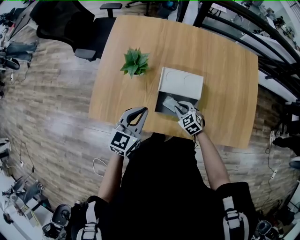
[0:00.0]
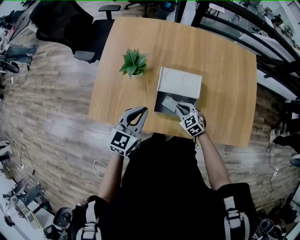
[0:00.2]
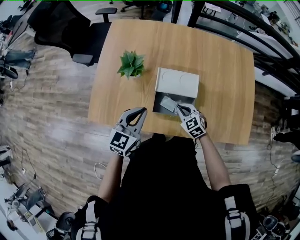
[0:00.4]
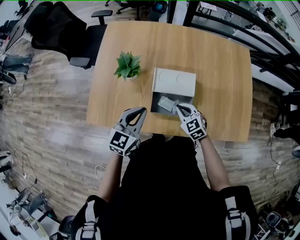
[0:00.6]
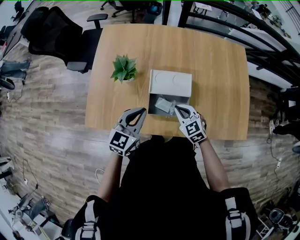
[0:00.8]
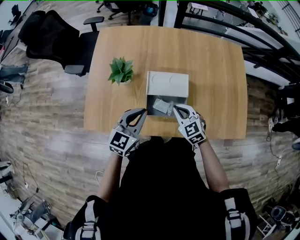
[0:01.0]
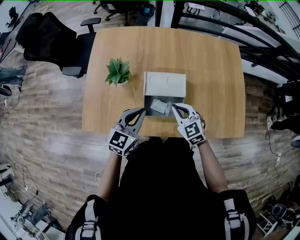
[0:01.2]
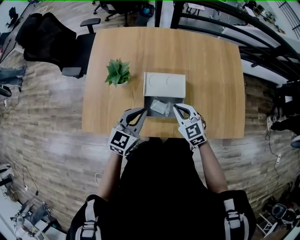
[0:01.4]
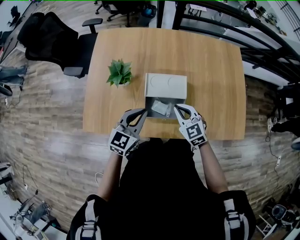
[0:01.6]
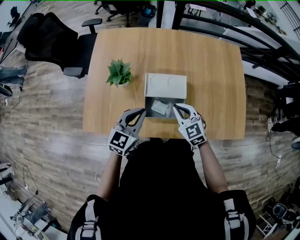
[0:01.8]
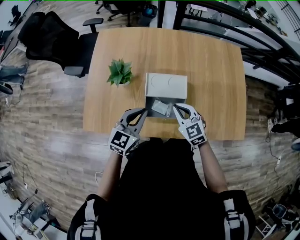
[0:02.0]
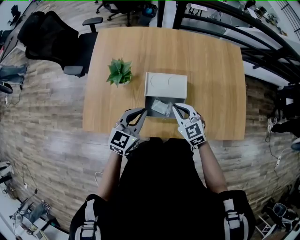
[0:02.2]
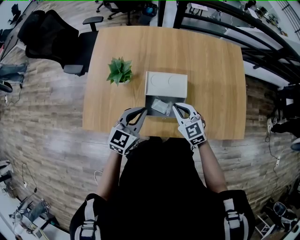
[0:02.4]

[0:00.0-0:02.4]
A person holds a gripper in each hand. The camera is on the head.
0:00.0 to 0:01.2: The left gripper changes place by approximately 5 cm. Meanwhile the right gripper heads upward, covering about 15 cm.
0:01.2 to 0:02.4: The two grippers keep their place.

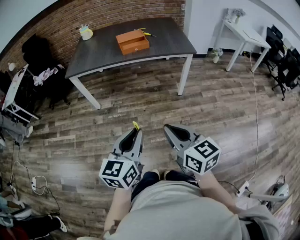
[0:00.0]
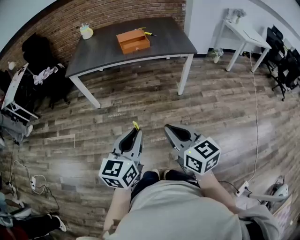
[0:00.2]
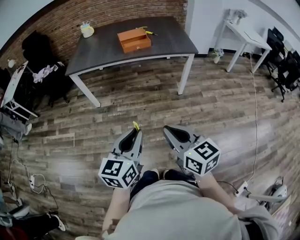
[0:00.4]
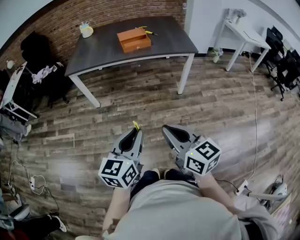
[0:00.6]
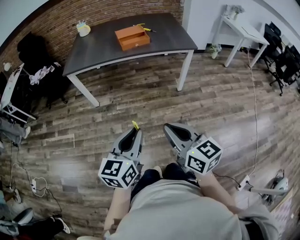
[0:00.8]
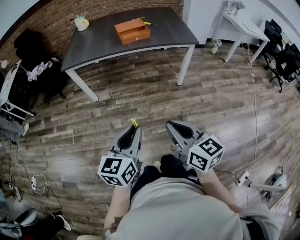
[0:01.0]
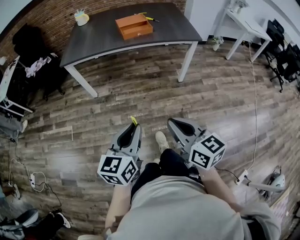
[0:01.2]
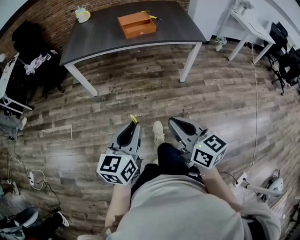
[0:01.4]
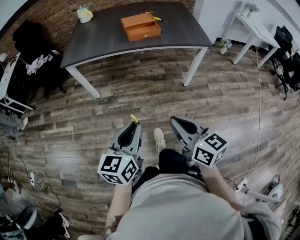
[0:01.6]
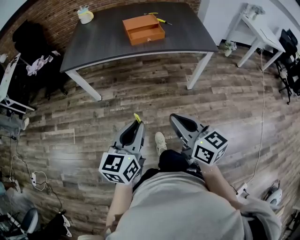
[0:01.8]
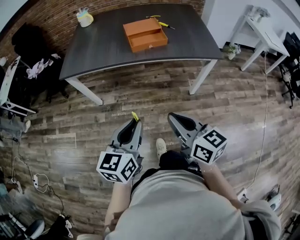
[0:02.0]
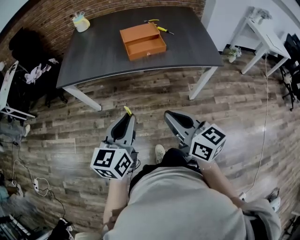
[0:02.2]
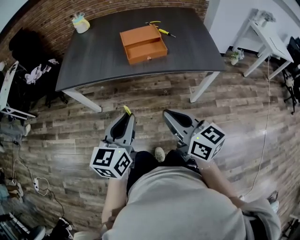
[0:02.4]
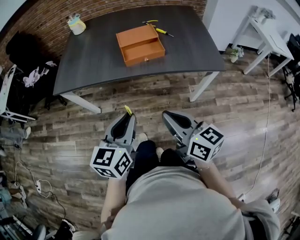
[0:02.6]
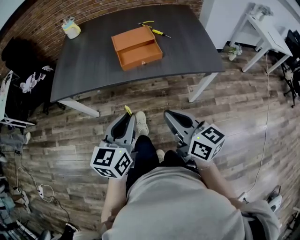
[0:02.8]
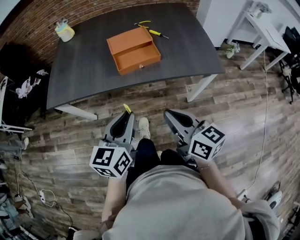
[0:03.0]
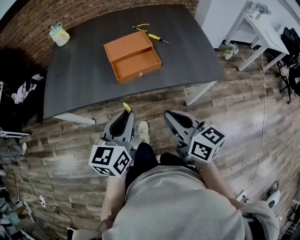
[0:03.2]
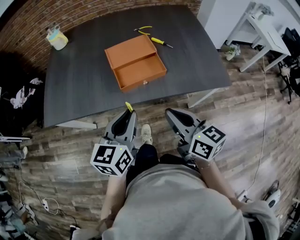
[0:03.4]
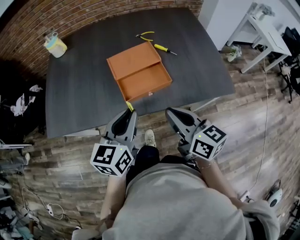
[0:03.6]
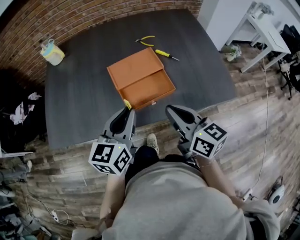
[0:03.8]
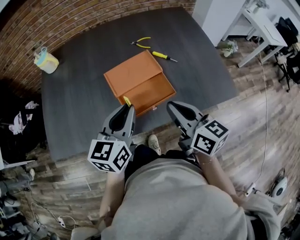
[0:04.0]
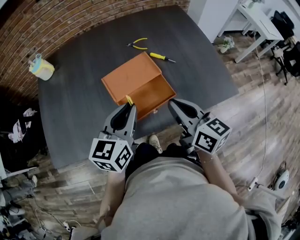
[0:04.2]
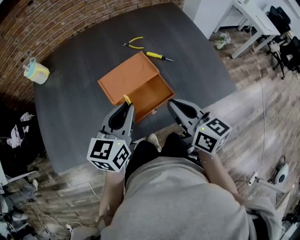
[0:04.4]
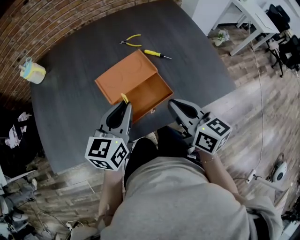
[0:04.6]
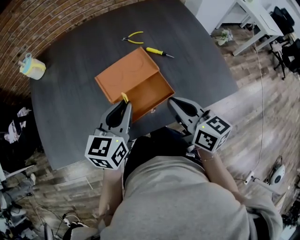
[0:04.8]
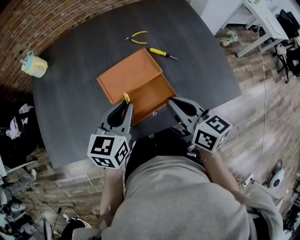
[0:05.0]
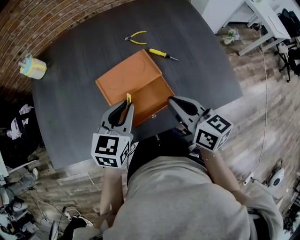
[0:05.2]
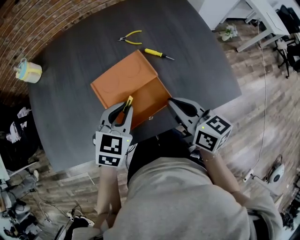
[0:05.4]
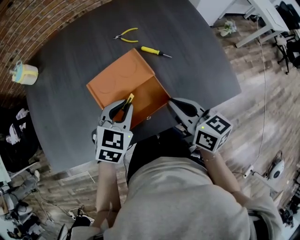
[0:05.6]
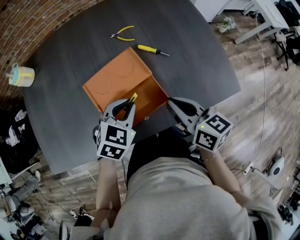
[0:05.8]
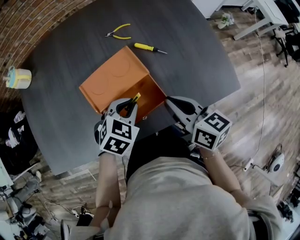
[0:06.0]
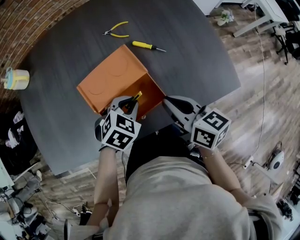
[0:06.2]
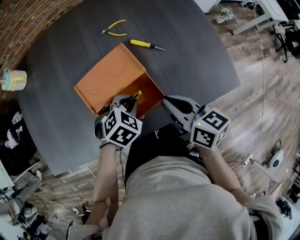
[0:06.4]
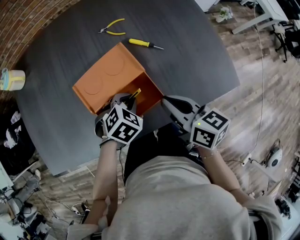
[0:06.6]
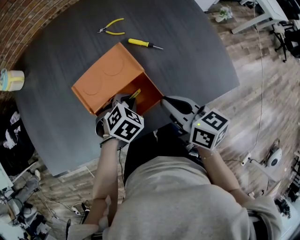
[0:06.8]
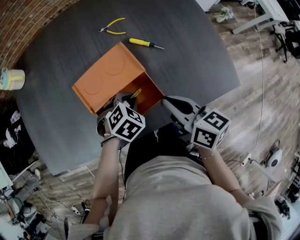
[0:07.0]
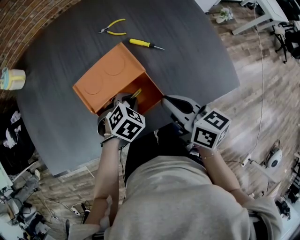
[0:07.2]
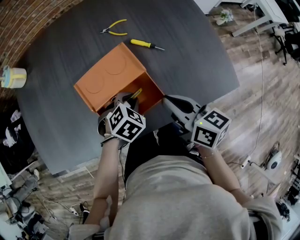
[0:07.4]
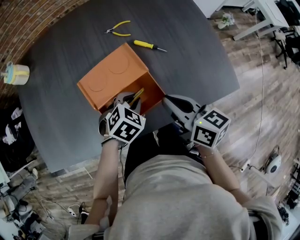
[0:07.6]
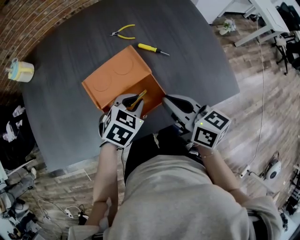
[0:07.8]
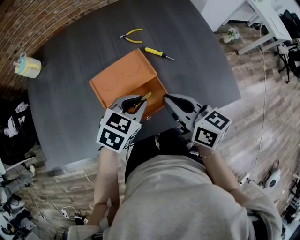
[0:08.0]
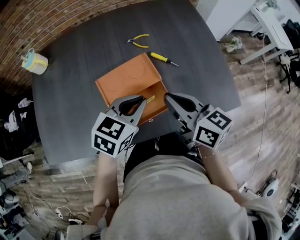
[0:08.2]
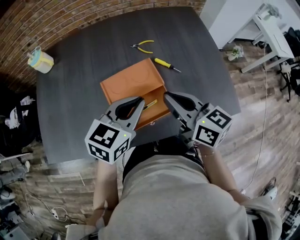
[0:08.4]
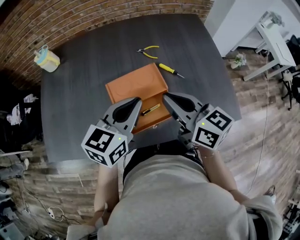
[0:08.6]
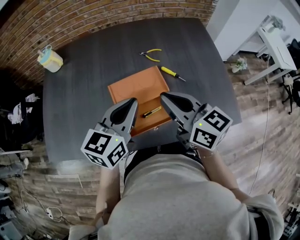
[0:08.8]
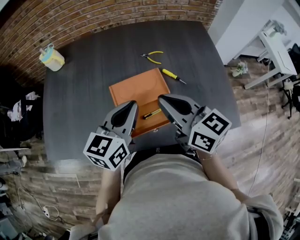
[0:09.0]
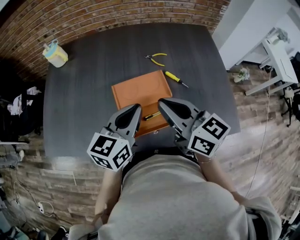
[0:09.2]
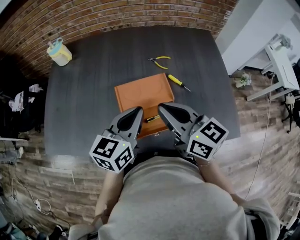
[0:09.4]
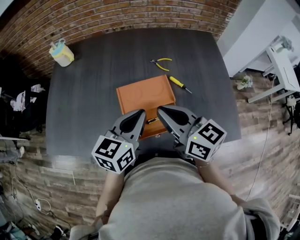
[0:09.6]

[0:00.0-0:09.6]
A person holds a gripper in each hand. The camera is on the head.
0:00.0 to 0:01.6: The left gripper goes roughly 15 cm forward and to the left. Meanwhile the right gripper is displaced forward by some 10 cm.
0:01.6 to 0:03.2: Both grippers travel together forward, approximately 40 cm.
0:03.2 to 0:04.8: The grippers both shift forward by approximately 25 cm.
0:04.8 to 0:06.4: The left gripper goes roughly 20 cm downward and to the right, and points its fingers approximately 40 degrees further downward; the right gripper moves downward, roughly 5 cm.
0:06.4 to 0:08.0: The left gripper shifts about 10 cm upward, and changes its angle by roughly 30 degrees. Meanwhile the right gripper ends up roughly 5 cm from where it was.
0:08.0 to 0:09.6: The left gripper shifts about 15 cm upward and to the left, and changes its angle by approximately 40 degrees; the right gripper moves to the left and upward, some 10 cm, and rotates approximately 20 degrees.

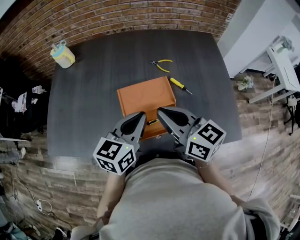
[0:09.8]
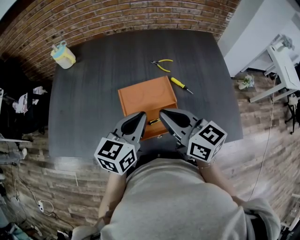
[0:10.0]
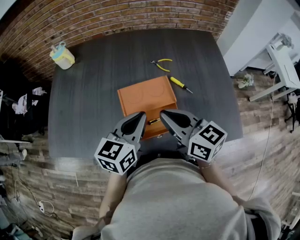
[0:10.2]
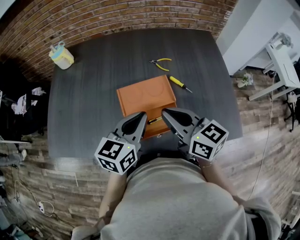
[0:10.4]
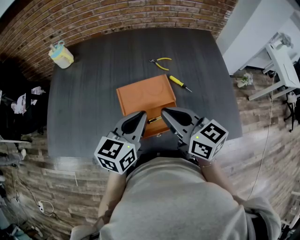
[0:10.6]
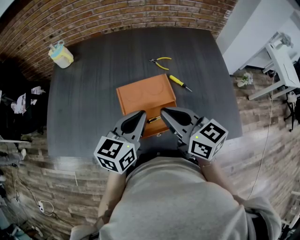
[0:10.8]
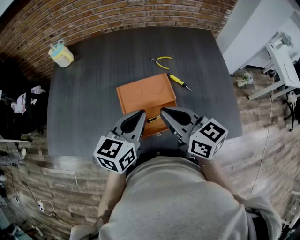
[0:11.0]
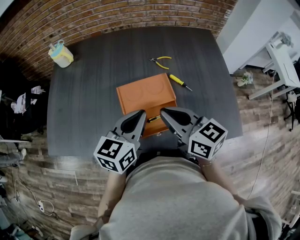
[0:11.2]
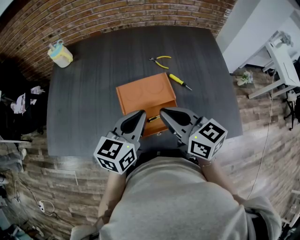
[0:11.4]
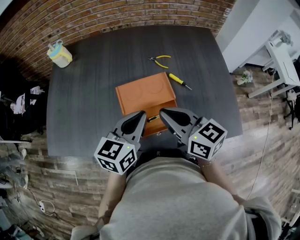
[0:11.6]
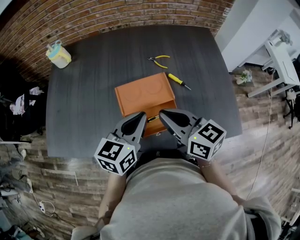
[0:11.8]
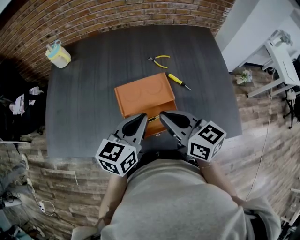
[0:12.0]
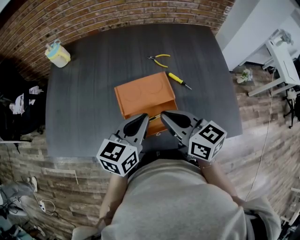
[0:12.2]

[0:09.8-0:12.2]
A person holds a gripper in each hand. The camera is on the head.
0:09.8 to 0:12.2: The grippers stay close to where they were, moving slightly.

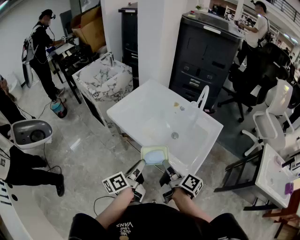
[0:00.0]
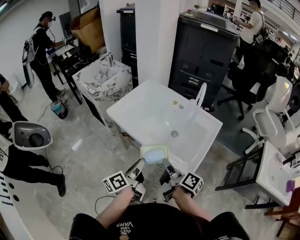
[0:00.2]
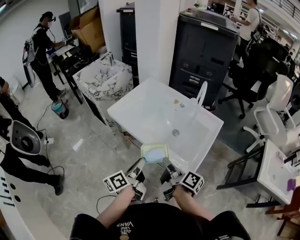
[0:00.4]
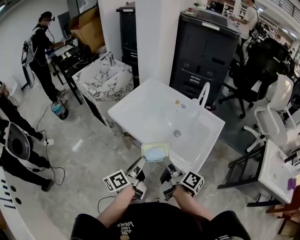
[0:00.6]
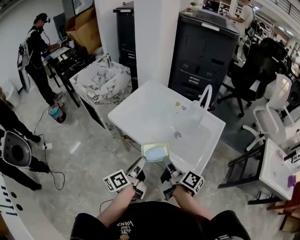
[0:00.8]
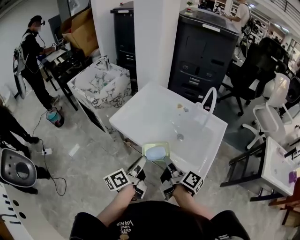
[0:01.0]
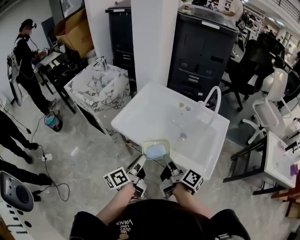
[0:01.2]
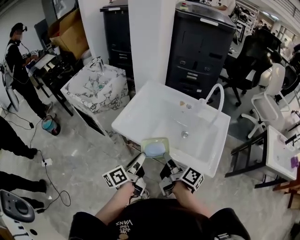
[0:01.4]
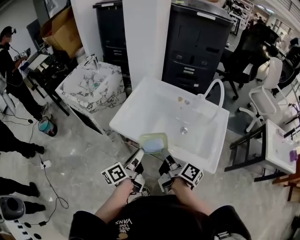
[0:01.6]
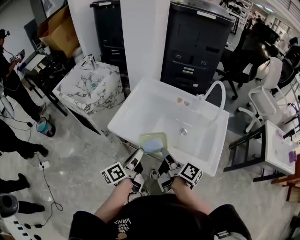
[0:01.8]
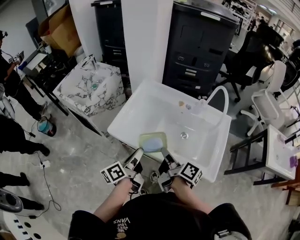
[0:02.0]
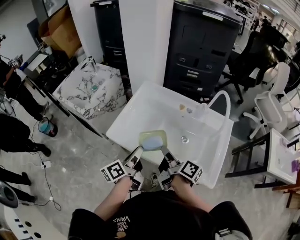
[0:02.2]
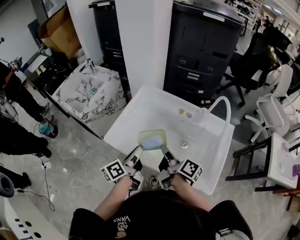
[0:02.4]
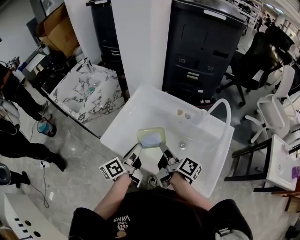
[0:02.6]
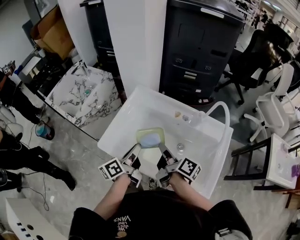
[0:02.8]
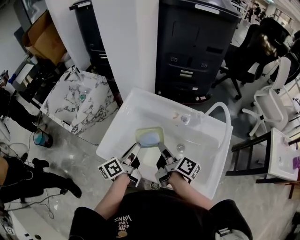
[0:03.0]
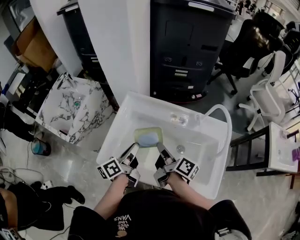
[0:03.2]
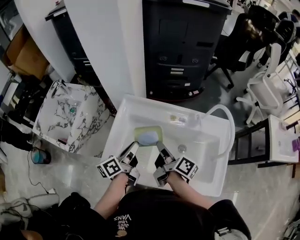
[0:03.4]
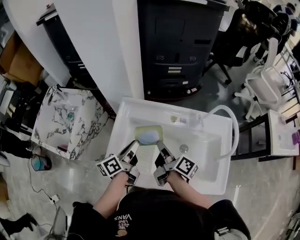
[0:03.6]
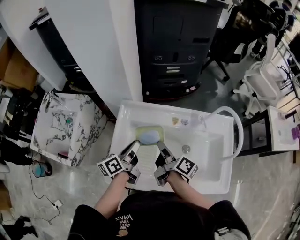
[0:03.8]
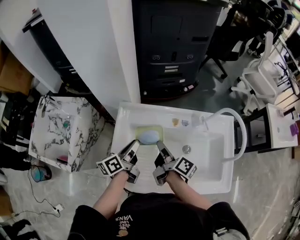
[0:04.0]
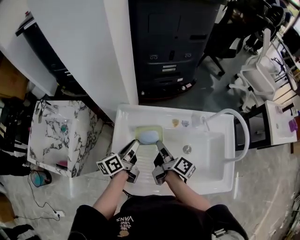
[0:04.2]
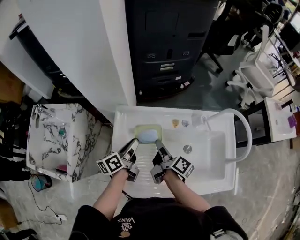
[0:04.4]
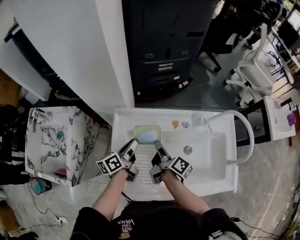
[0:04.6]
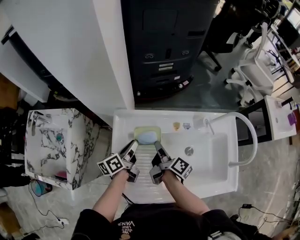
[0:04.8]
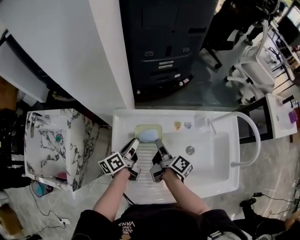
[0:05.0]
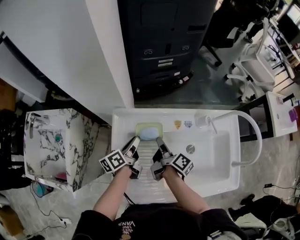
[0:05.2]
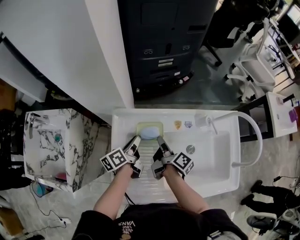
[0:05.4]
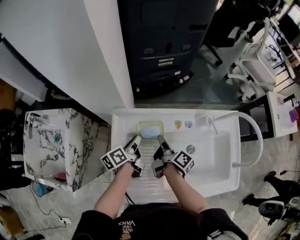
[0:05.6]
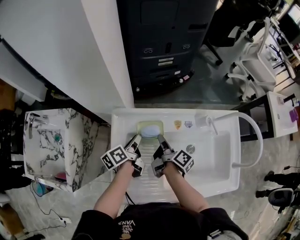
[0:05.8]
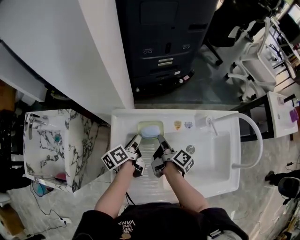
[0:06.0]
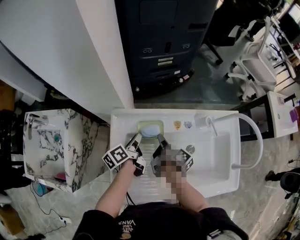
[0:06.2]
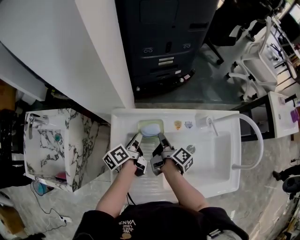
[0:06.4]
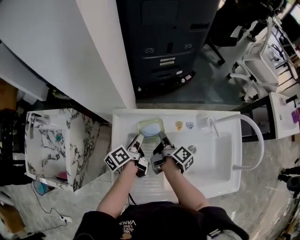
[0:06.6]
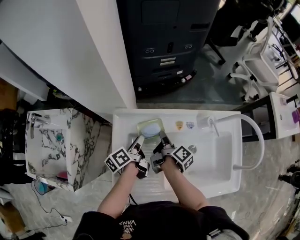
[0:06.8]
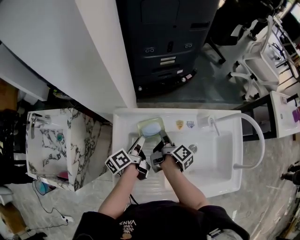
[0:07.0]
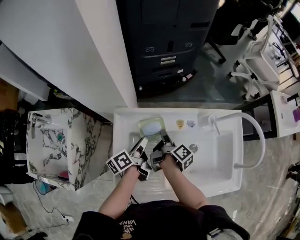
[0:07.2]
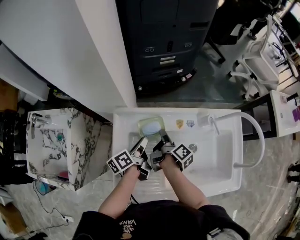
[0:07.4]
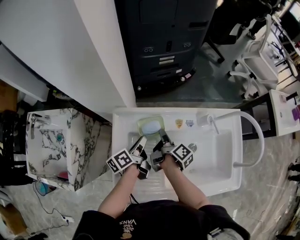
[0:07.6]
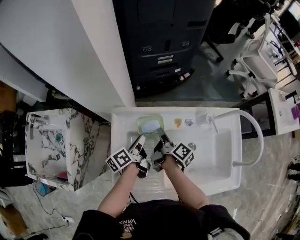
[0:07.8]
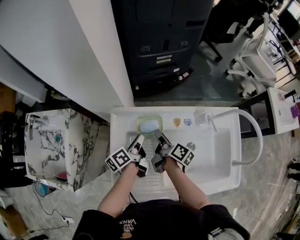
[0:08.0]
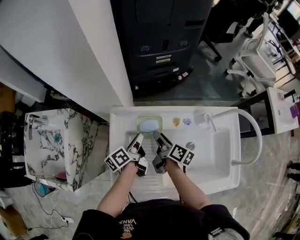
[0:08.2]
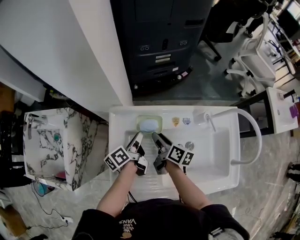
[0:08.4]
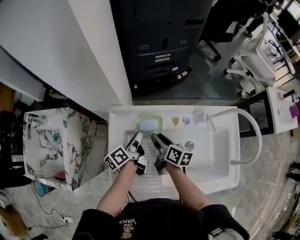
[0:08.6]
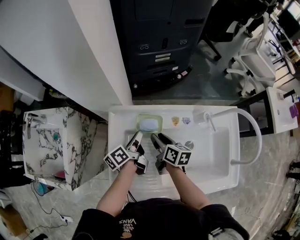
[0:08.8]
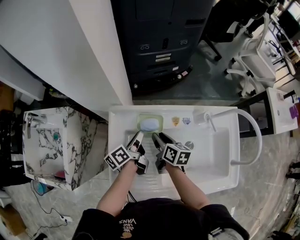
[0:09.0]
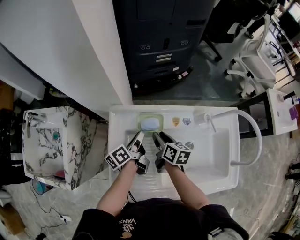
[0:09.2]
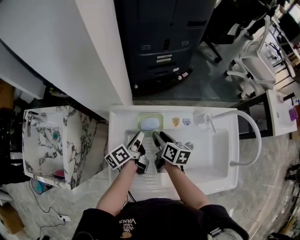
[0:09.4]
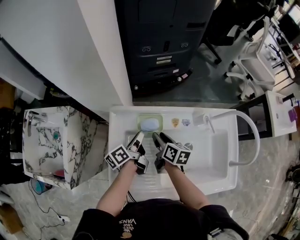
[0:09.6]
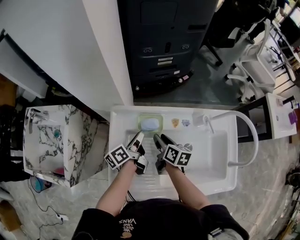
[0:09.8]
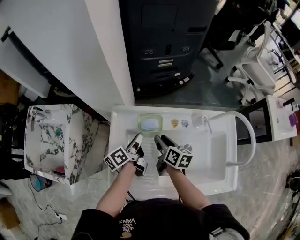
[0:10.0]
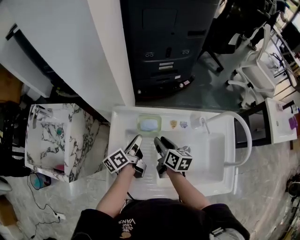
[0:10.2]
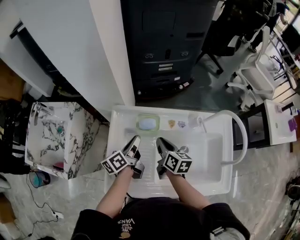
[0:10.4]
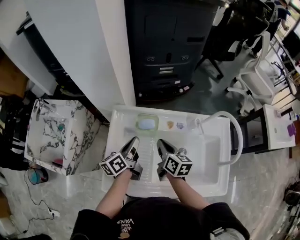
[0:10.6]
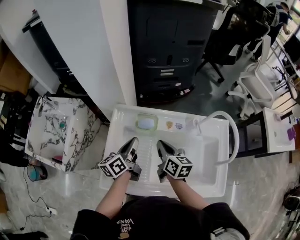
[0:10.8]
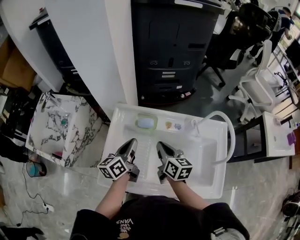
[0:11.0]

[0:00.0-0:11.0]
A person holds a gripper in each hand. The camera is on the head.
0:00.0 to 0:01.6: The grippers both shift to the left and forward by about 15 cm.
0:01.6 to 0:03.2: The two grippers go some 25 cm forward.
0:03.2 to 0:04.8: The left gripper travels forward and downward by about 20 cm; the right gripper travels forward, downward and to the left by about 15 cm, and turns by roughly 20 degrees.
0:04.8 to 0:06.2: The right gripper moves some 5 cm.
0:06.2 to 0:07.8: The grippers stay close to where they were, moving slightly.
0:07.8 to 0:09.4: The right gripper rotates about 40 degrees.
0:09.4 to 0:11.0: The grippers both shift upward and backward by approximately 15 cm. The left gripper swivels roughly 30 degrees, while the right gripper swivels approximately 20 degrees, and closes up.
